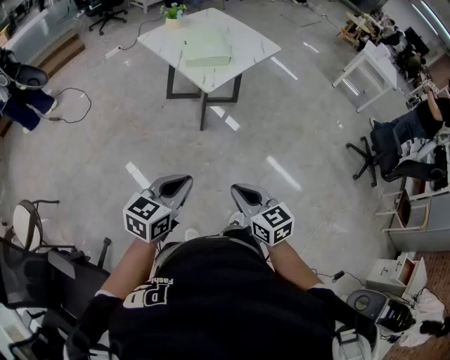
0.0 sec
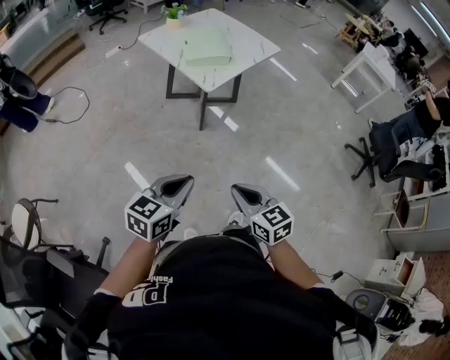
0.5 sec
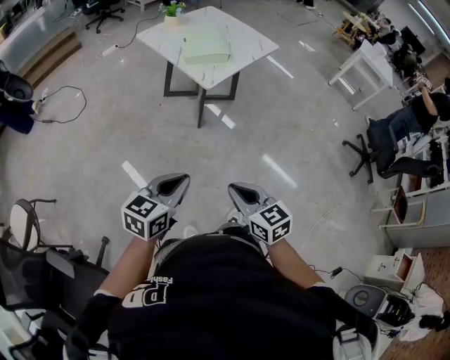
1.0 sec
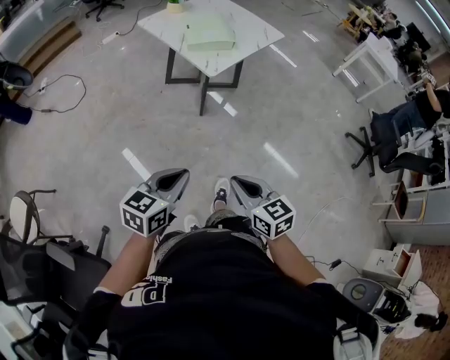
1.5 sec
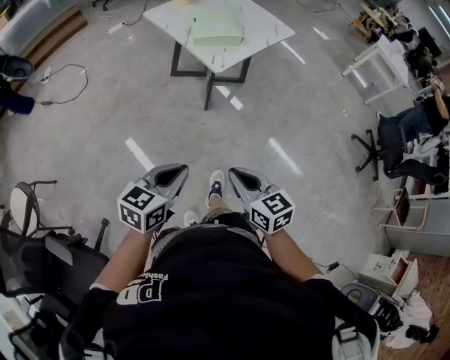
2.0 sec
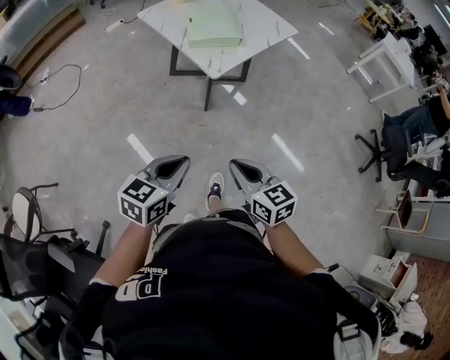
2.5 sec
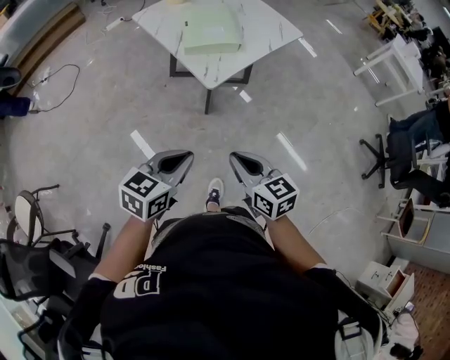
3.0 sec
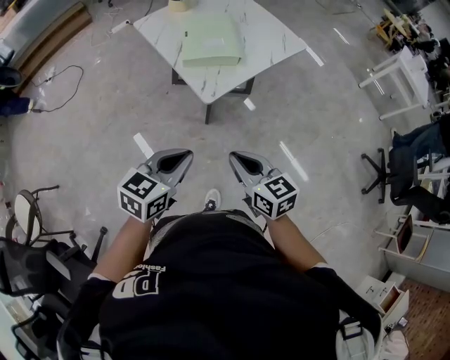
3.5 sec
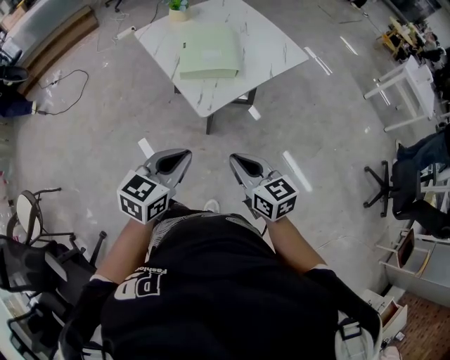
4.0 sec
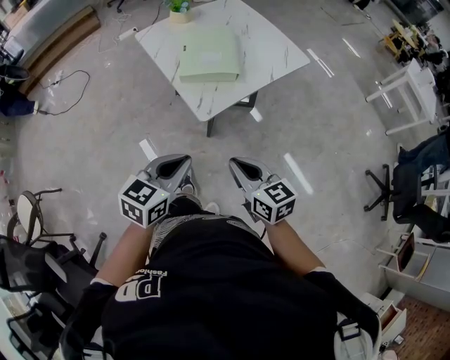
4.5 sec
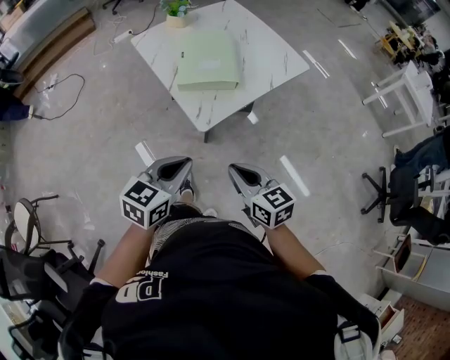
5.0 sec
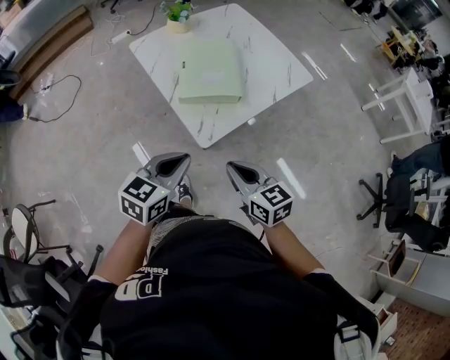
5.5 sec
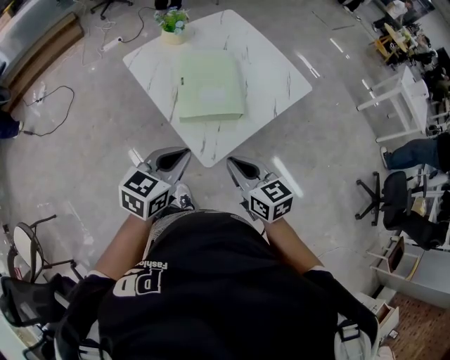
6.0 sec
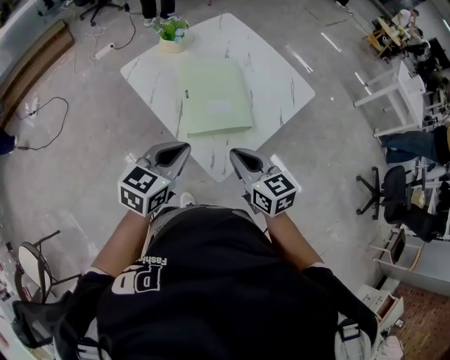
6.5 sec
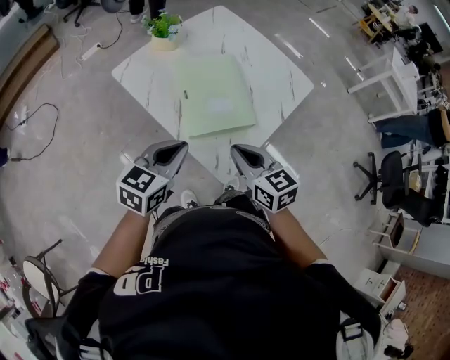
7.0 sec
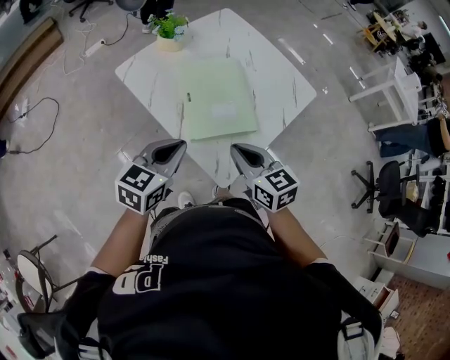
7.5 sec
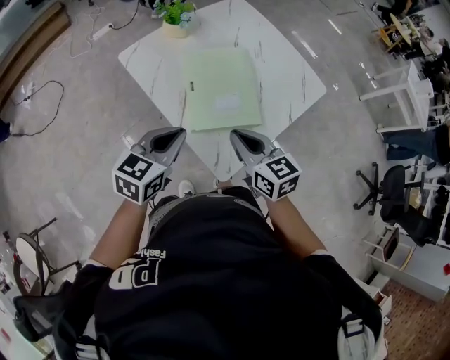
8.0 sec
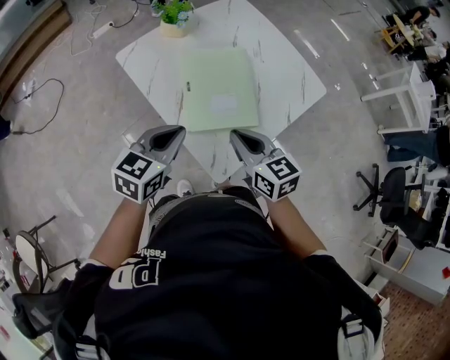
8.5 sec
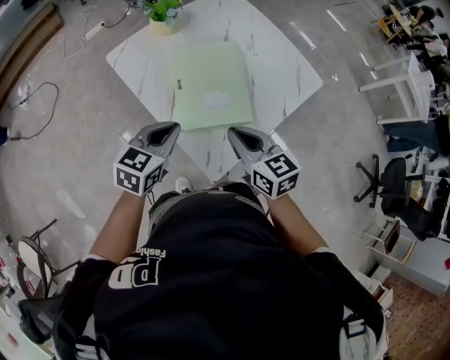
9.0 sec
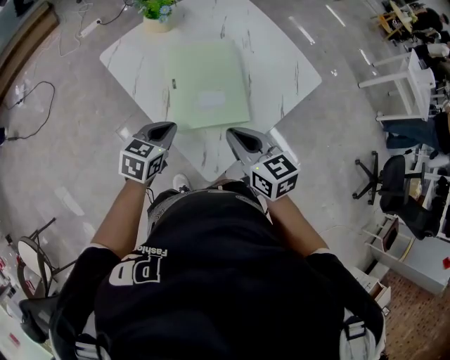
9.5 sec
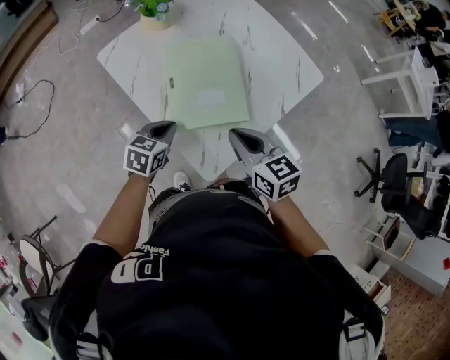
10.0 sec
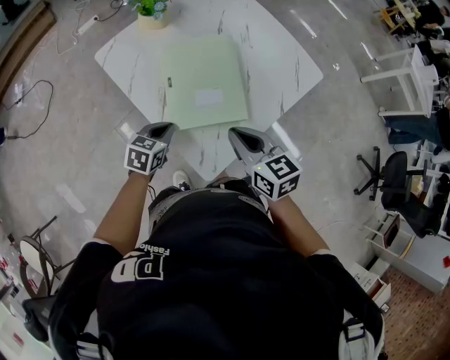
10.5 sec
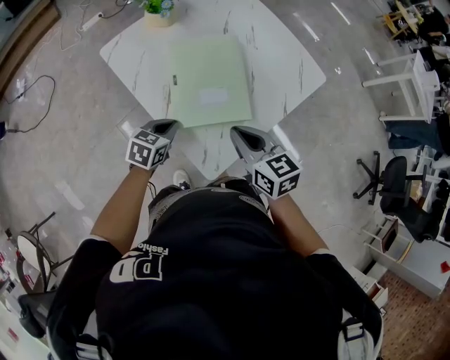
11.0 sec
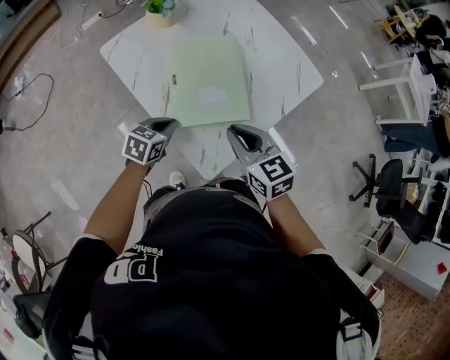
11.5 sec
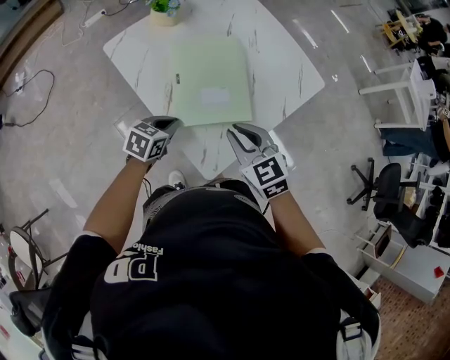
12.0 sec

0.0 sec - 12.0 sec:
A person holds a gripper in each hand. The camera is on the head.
0.0 sec - 2.0 sec: The grippers move only a little.
2.0 sec - 4.0 sec: The grippers both shift forward by some 30 cm.
4.0 sec - 6.0 sec: Both grippers travel together forward, roughly 20 cm.
6.0 sec - 8.0 sec: Both grippers move forward and to the left, some 15 cm.
8.0 sec - 10.0 sec: The right gripper is displaced to the right by some 5 cm; the left gripper shifts roughly 15 cm downward.
10.0 sec - 12.0 sec: The right gripper swivels about 20 degrees.

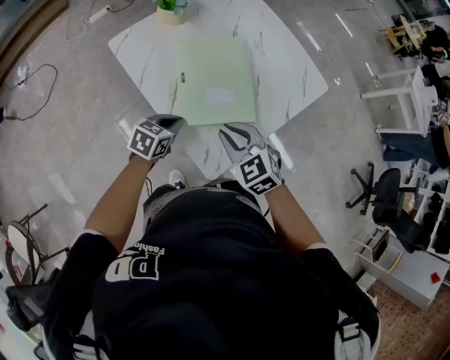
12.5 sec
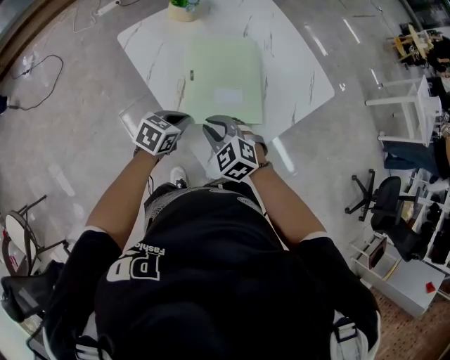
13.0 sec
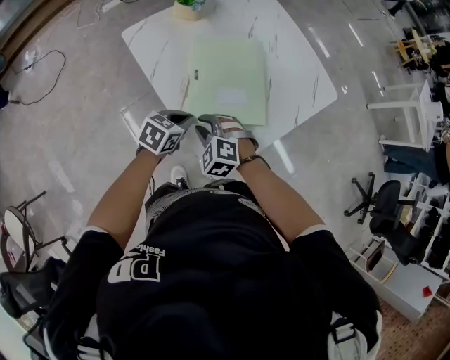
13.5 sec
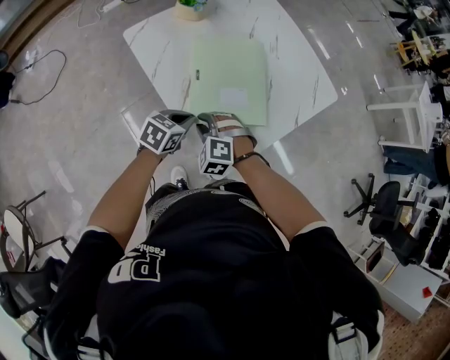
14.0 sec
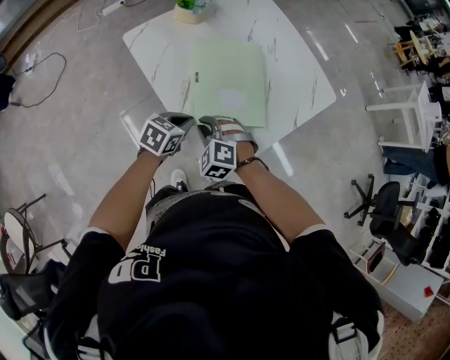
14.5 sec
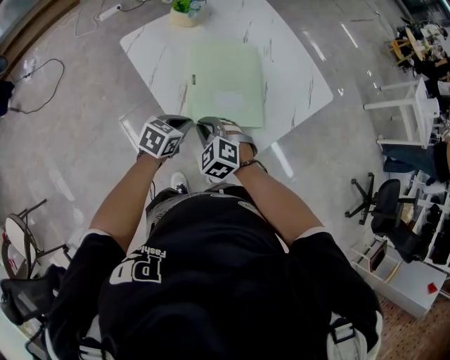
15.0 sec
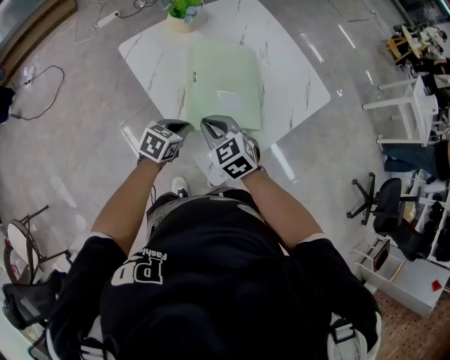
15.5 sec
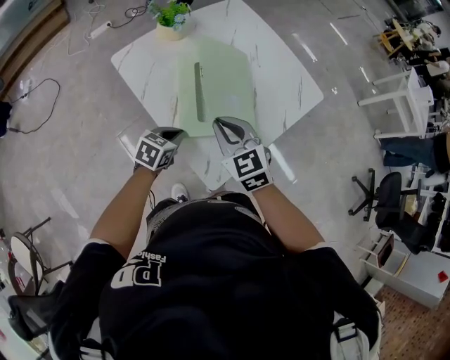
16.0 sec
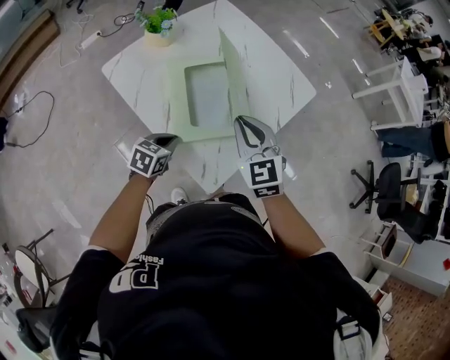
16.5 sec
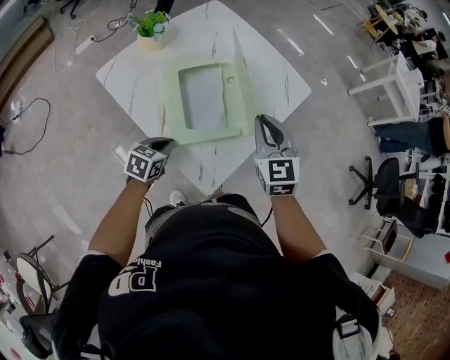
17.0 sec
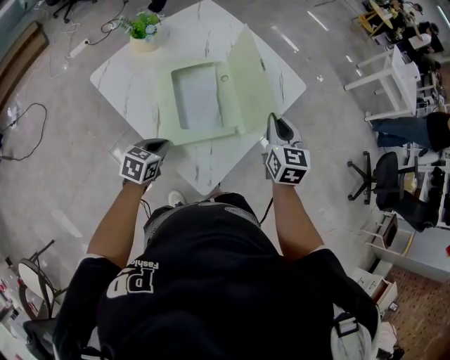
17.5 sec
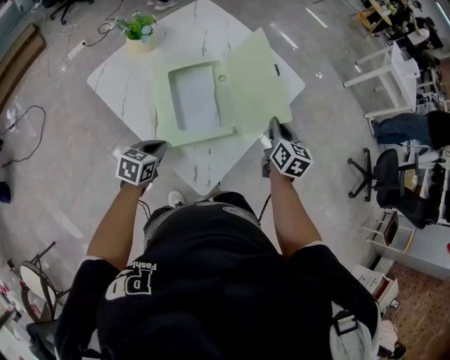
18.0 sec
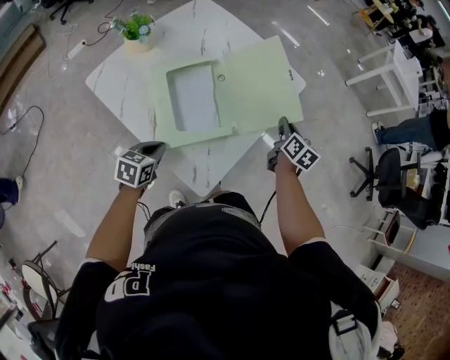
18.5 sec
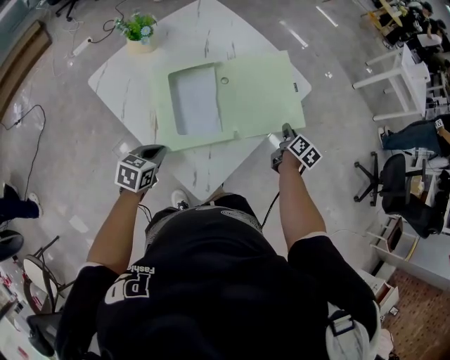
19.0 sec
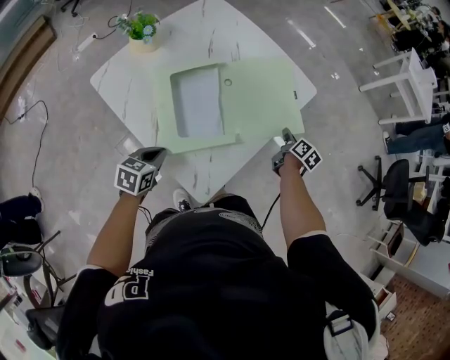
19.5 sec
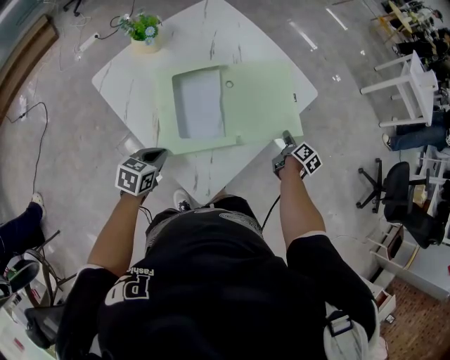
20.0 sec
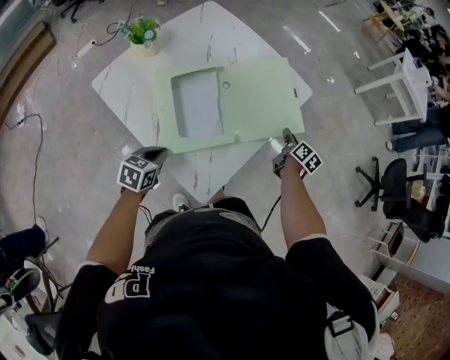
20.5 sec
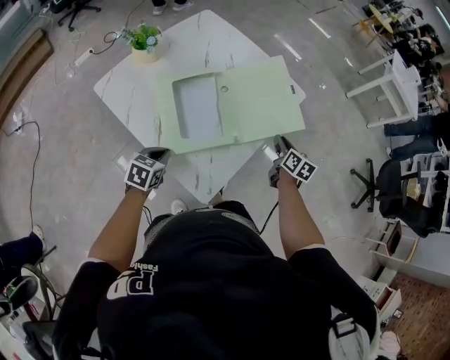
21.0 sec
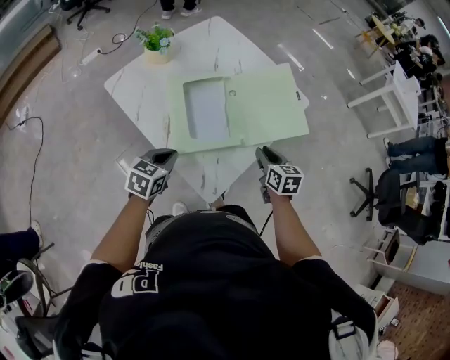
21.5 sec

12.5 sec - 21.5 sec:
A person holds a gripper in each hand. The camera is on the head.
12.5 sec - 14.5 sec: The right gripper heads downward and to the left, covering roughly 15 cm, and turns by some 30 degrees.
14.5 sec - 17.0 sec: The right gripper moves upward, to the right and forward, roughly 30 cm, and points its fingers some 30 degrees further upward.
17.0 sec - 19.5 sec: The right gripper moves downward, to the right and forward, approximately 35 cm, and rolls clockwise, seen from behind, by roughly 70 degrees.
19.5 sec - 21.5 sec: The right gripper shifts approximately 20 cm backward, to the left and upward, and rotates roughly 40 degrees; the left gripper goes roughly 5 cm upward.

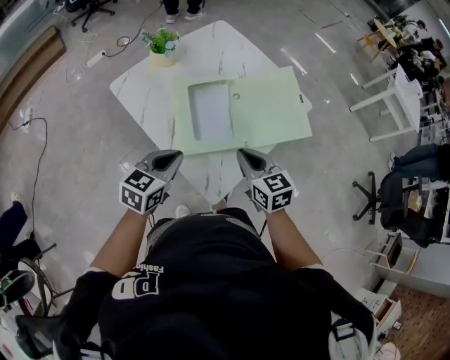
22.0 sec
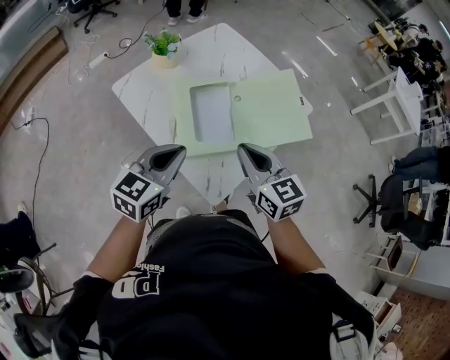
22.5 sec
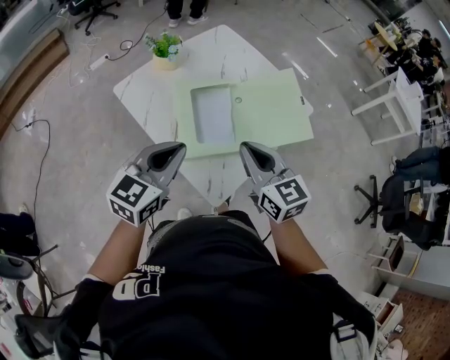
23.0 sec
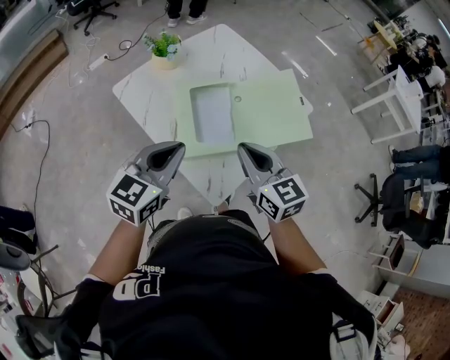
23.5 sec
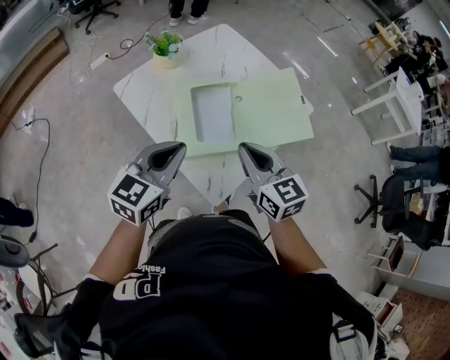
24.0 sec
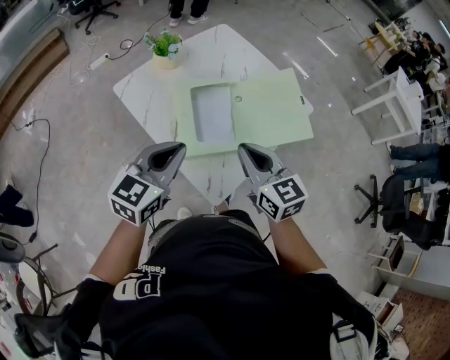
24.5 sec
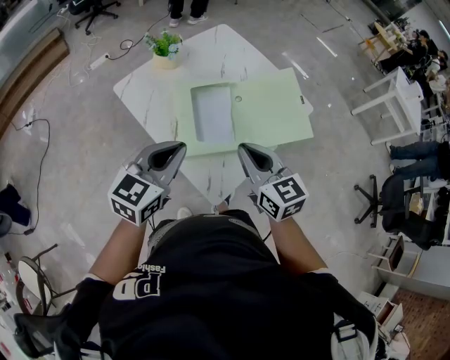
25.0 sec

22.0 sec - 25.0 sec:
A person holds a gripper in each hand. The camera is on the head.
22.0 sec - 23.5 sec: Both grippers move upward, some 10 cm.
23.5 sec - 25.0 sec: Both grippers stay put.

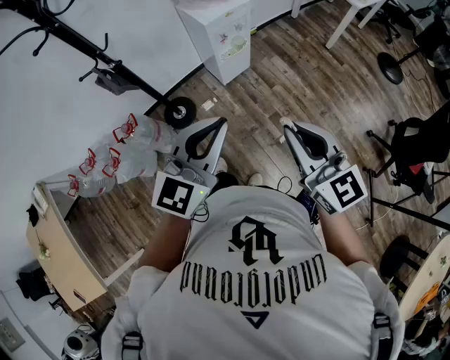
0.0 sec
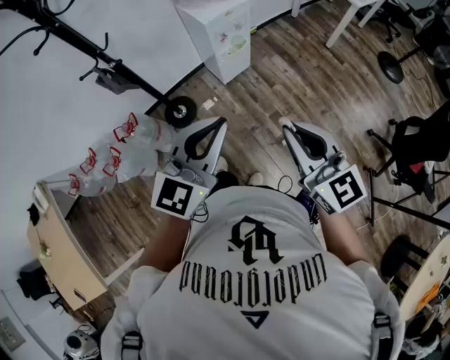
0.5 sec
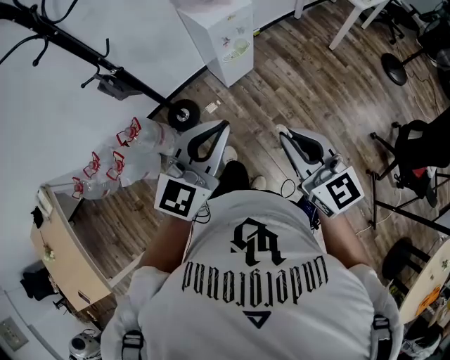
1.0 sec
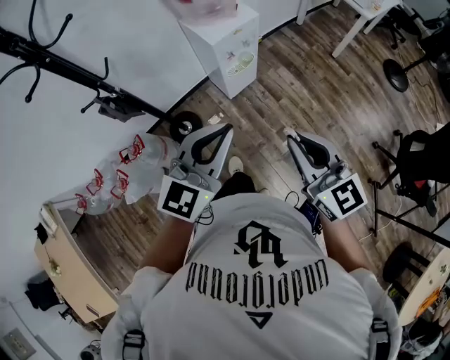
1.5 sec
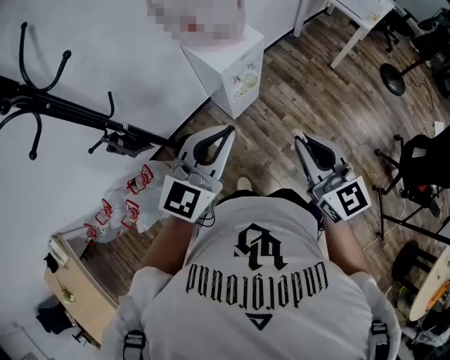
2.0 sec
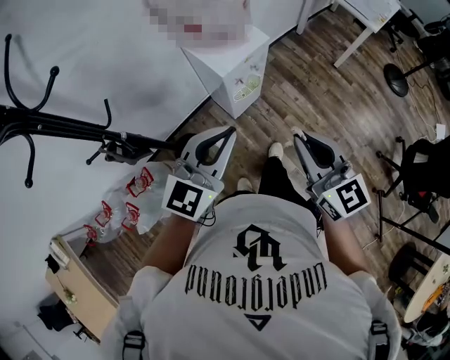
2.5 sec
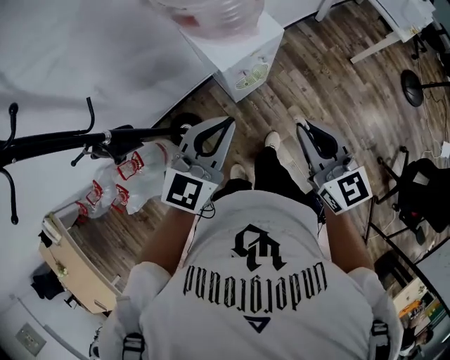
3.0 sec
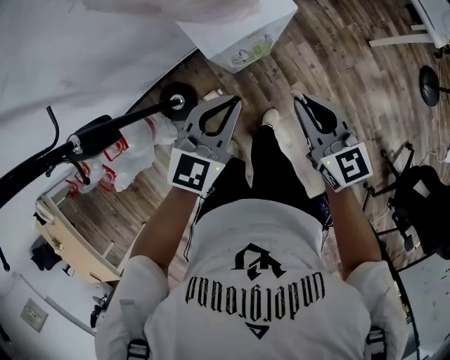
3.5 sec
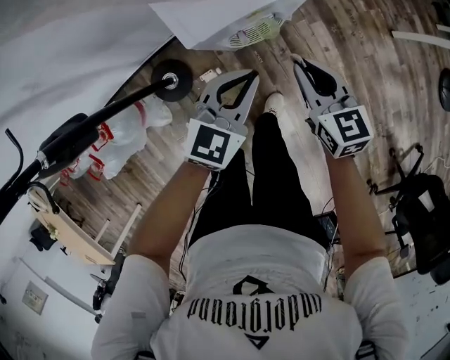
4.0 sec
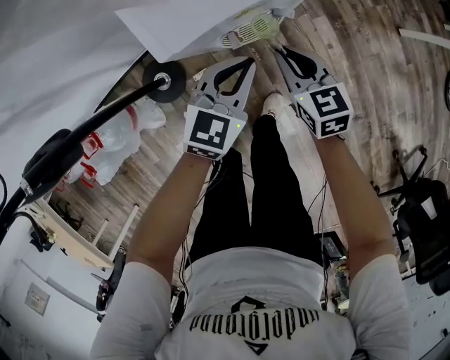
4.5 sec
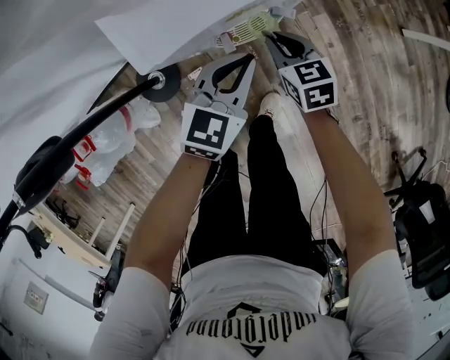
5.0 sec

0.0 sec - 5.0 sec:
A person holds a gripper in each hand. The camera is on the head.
0.0 sec - 2.5 sec: Both grippers travel together forward, about 30 cm.
2.5 sec - 5.0 sec: Both grippers move downward and forward, about 60 cm. The right gripper angles its fingers downward, by roughly 30 degrees. Meanwhile the left gripper swivels some 30 degrees.
